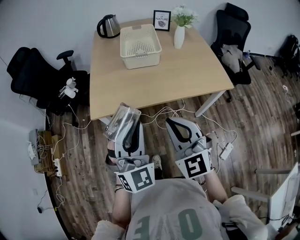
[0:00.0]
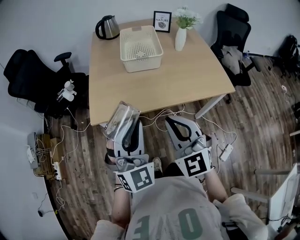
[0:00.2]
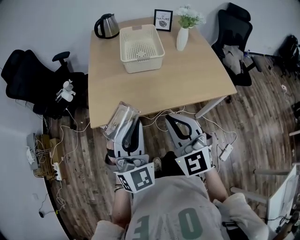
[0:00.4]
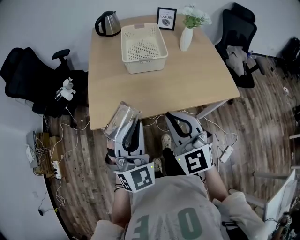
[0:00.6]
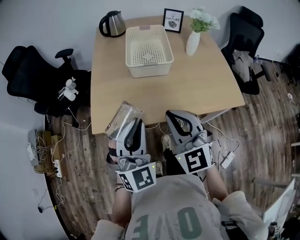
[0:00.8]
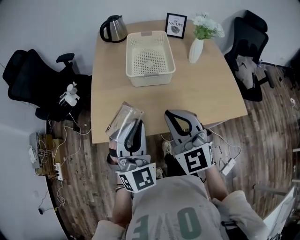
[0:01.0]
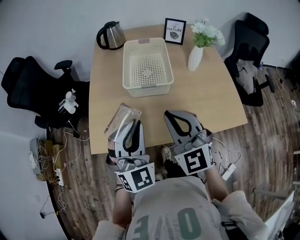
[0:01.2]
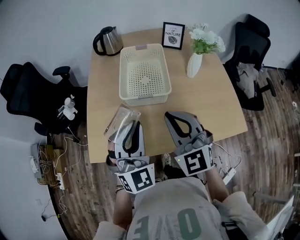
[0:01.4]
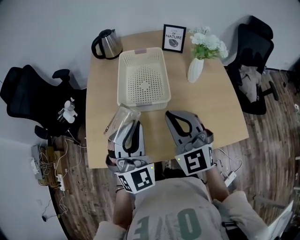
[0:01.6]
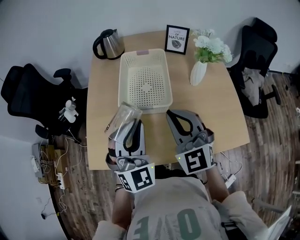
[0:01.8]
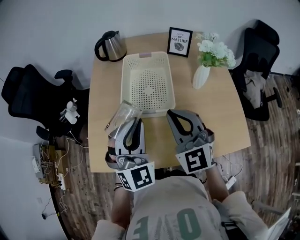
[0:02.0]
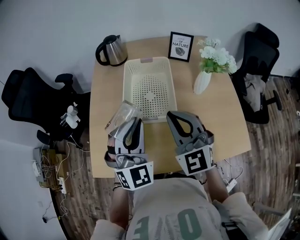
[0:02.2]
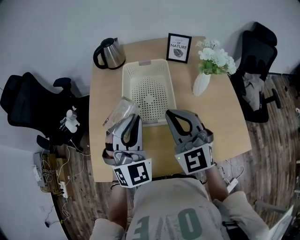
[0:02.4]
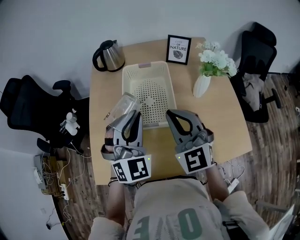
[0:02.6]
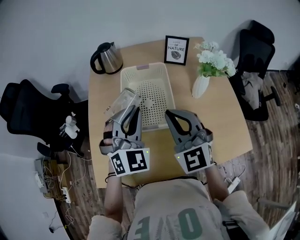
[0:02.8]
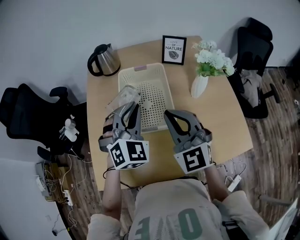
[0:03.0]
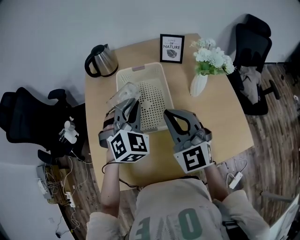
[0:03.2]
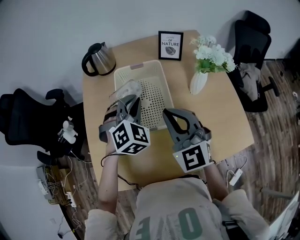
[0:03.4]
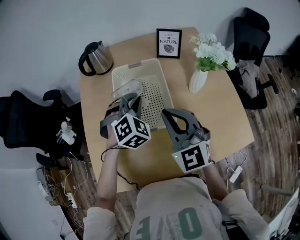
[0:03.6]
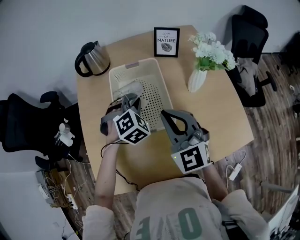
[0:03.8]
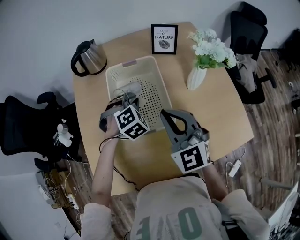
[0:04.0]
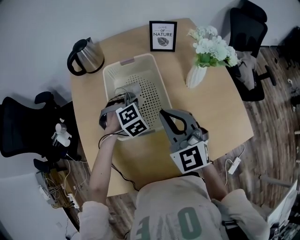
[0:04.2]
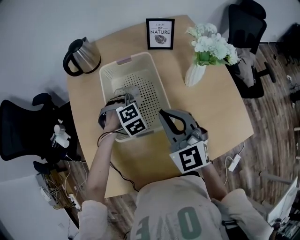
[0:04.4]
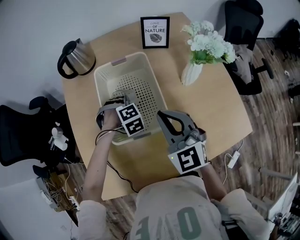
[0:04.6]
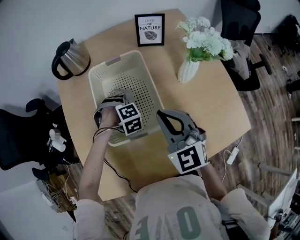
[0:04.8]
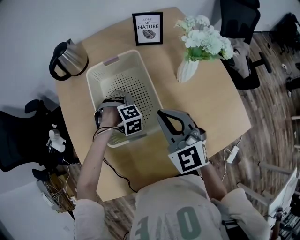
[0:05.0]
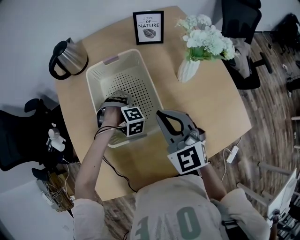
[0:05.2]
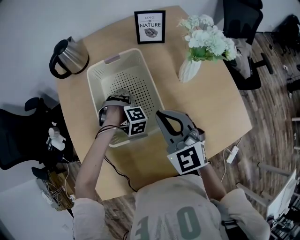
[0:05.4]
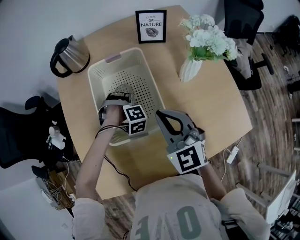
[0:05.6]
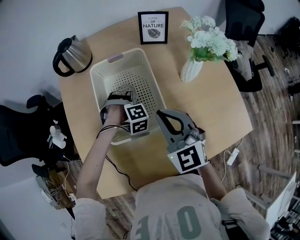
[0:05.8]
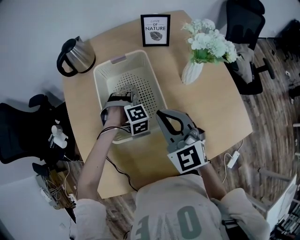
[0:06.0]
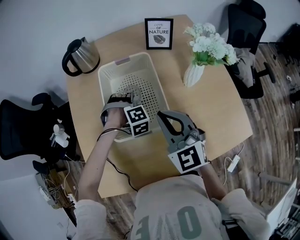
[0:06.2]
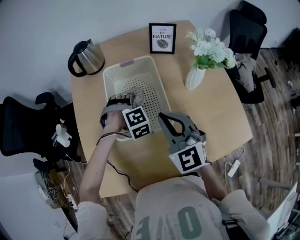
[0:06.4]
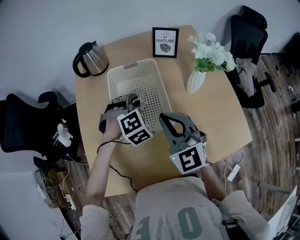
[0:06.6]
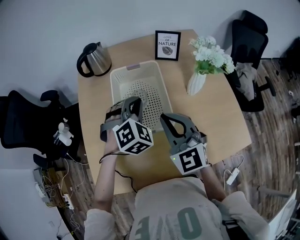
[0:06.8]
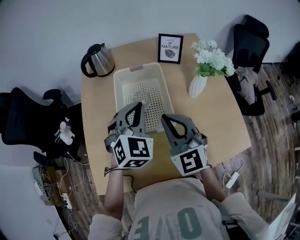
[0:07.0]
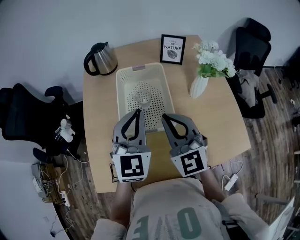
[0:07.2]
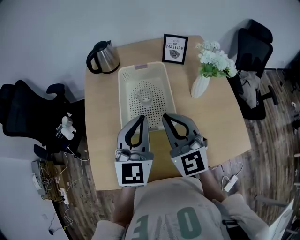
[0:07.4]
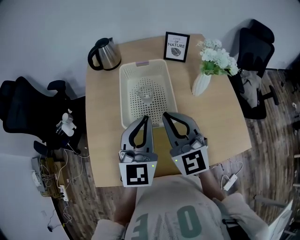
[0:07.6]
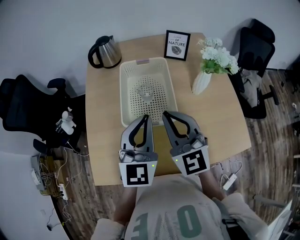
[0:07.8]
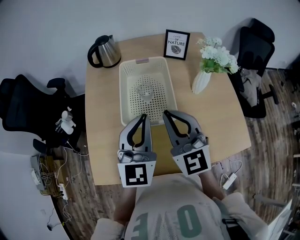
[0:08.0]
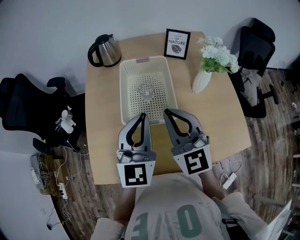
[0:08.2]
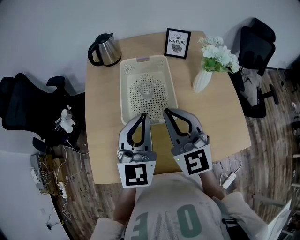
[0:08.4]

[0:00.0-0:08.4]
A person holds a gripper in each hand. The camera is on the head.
0:00.0 to 0:01.4: Both grippers move forward, some 30 cm.
0:01.4 to 0:02.8: Both grippers travel together forward, approximately 15 cm.
0:02.8 to 0:04.2: The right gripper goes some 10 cm downward and forward. The left gripper is displaced downward and forward by some 25 cm, and tips its fingers downward by approximately 40 degrees.
0:04.2 to 0:05.6: The left gripper is displaced downward by approximately 10 cm, and turns by approximately 30 degrees.
0:05.6 to 0:07.0: The right gripper heads upward, covering some 5 cm; the left gripper heads upward, covering approximately 25 cm, angles its fingers upward, by some 50 degrees, and closes its fingers.
0:07.0 to 0:08.4: The left gripper travels backward by approximately 10 cm, and rotates roughly 40 degrees.

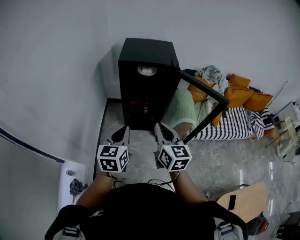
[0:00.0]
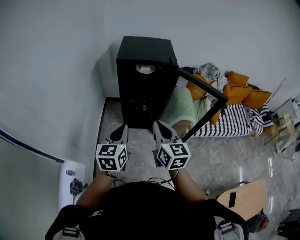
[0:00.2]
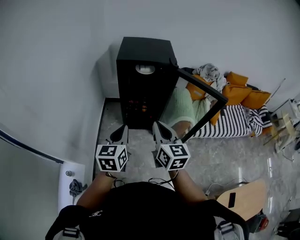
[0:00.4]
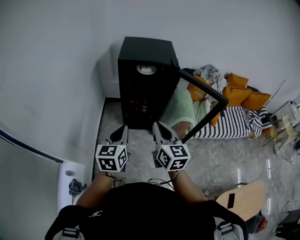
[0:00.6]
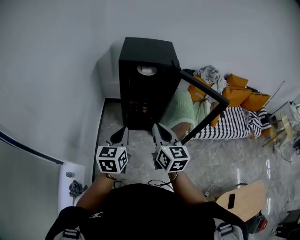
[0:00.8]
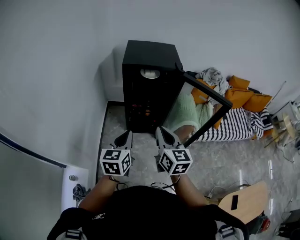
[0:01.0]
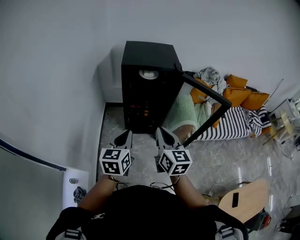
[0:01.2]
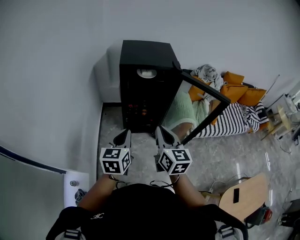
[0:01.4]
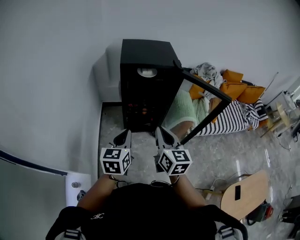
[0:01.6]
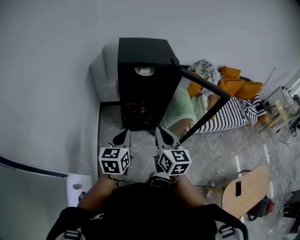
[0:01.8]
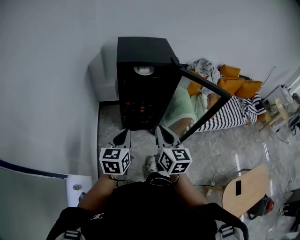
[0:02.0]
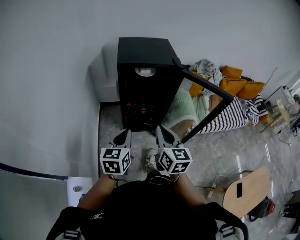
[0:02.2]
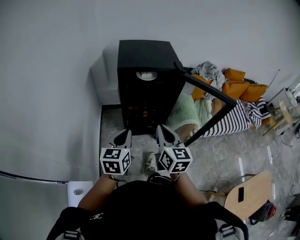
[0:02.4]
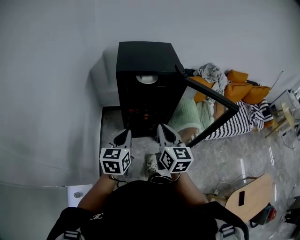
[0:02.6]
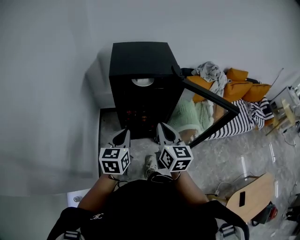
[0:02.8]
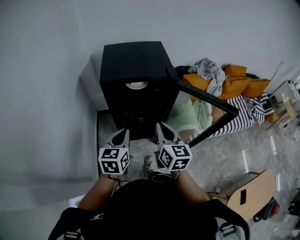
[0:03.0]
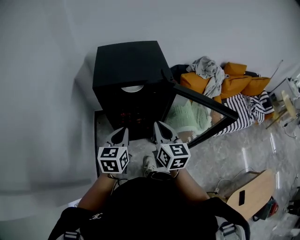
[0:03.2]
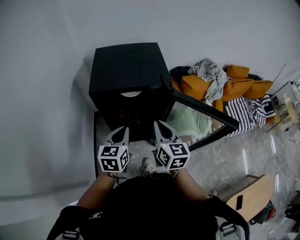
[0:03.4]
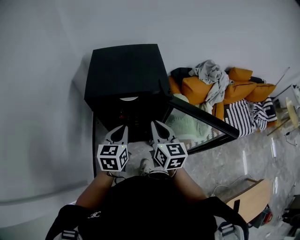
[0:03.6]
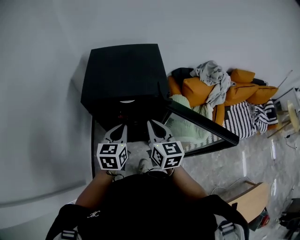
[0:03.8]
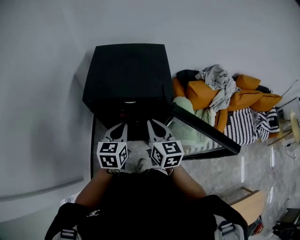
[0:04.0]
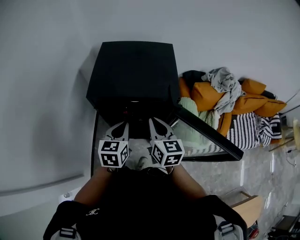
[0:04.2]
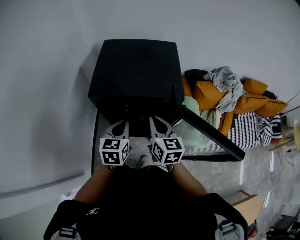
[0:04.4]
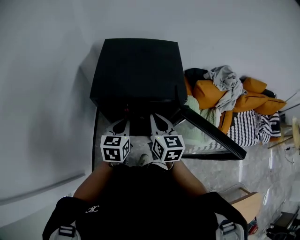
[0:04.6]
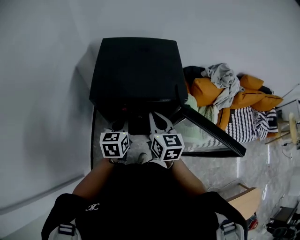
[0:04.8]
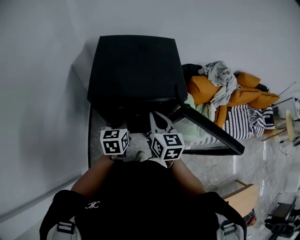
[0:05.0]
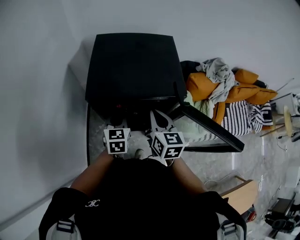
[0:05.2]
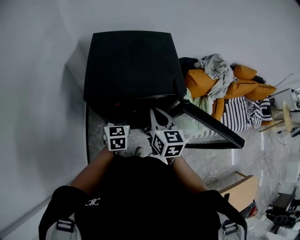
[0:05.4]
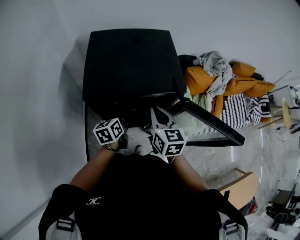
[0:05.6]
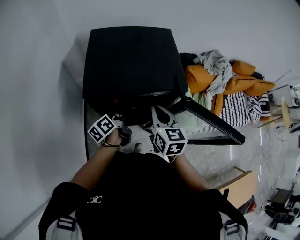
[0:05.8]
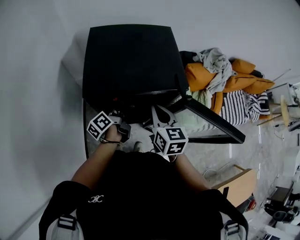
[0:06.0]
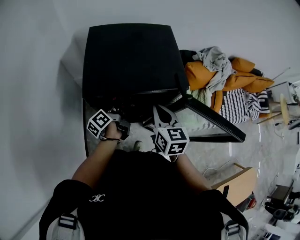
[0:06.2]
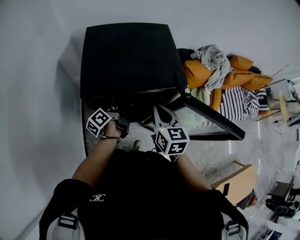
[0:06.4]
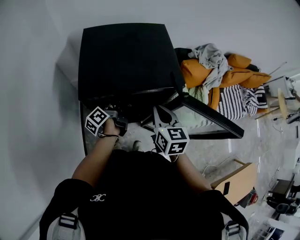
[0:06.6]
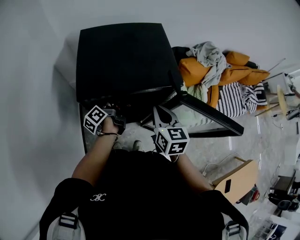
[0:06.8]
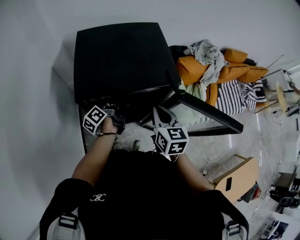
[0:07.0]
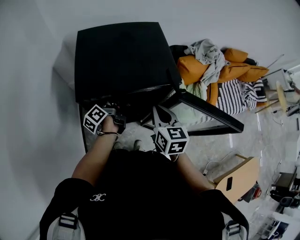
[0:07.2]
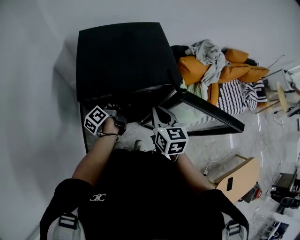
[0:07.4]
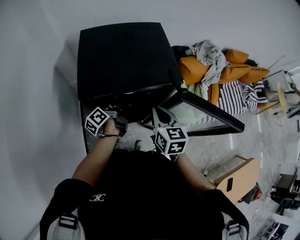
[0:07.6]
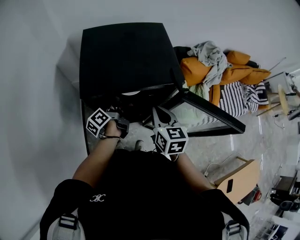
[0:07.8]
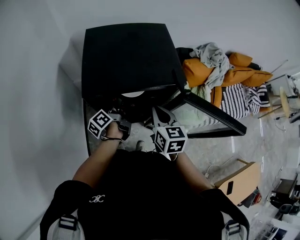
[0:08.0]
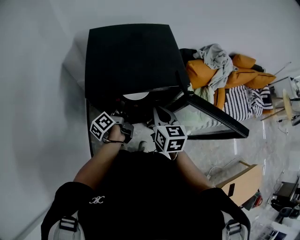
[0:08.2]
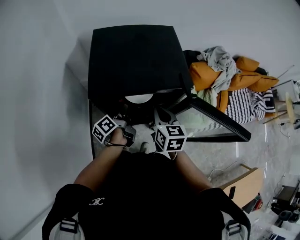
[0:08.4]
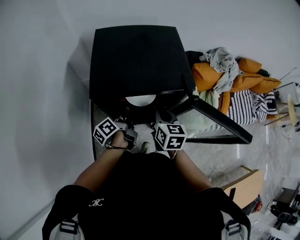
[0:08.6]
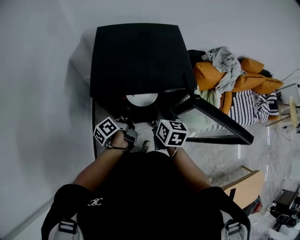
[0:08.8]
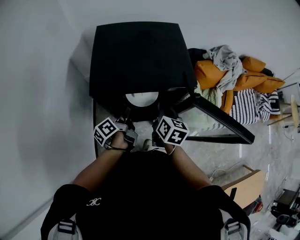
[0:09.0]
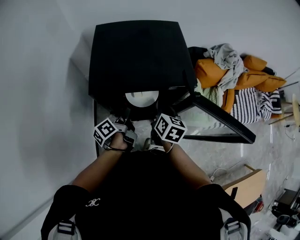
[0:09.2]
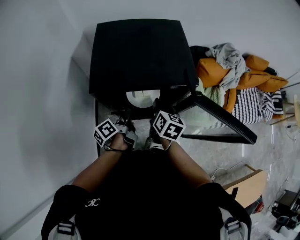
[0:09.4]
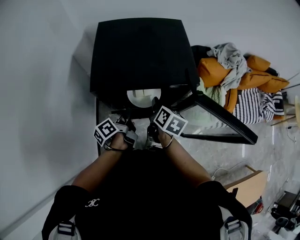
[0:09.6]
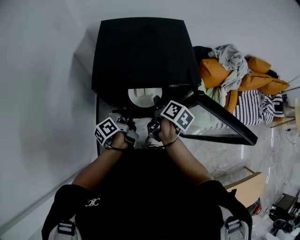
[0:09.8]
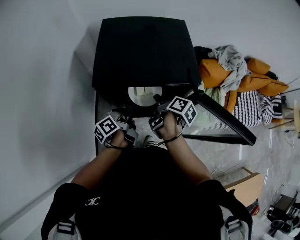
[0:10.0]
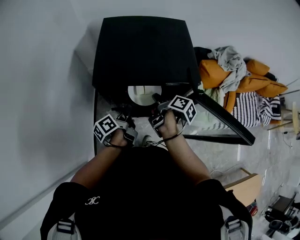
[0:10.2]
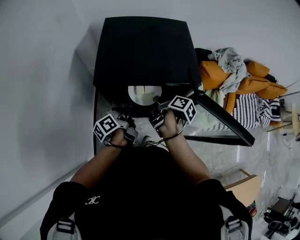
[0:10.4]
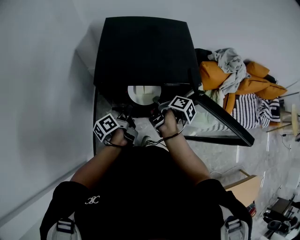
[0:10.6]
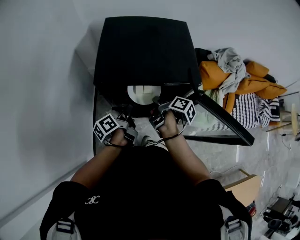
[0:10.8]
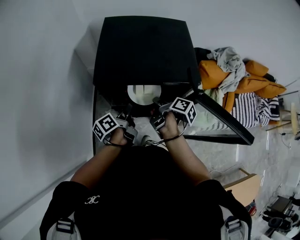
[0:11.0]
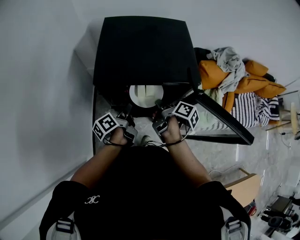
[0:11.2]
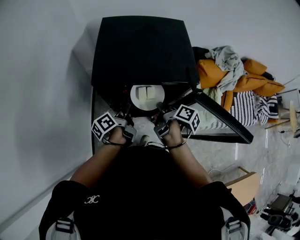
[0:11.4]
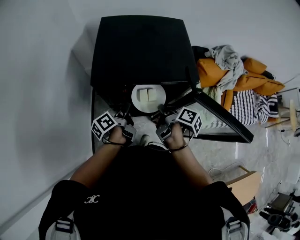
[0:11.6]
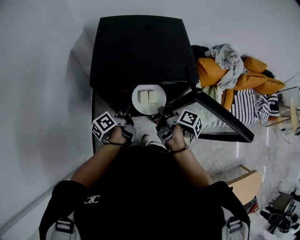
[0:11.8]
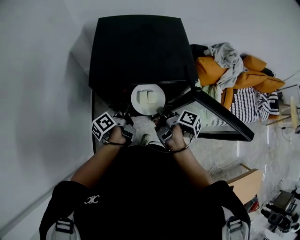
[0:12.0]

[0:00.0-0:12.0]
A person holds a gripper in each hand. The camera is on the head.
0:00.0 to 0:01.6: Both grippers move to the left, roughly 5 cm.
0:01.6 to 0:03.0: The grippers both shift forward by about 15 cm.
0:03.0 to 0:04.4: The two grippers go roughly 20 cm forward.
0:04.4 to 0:06.0: The left gripper travels downward and forward by roughly 15 cm, rotates around the line of its fingers by some 60 degrees, counterclockwise from behind, and opens up.
0:06.0 to 0:07.6: The grippers move only a little.
0:07.6 to 0:09.0: The right gripper heads downward, covering approximately 5 cm; the left gripper shifts roughly 5 cm backward.
0:09.0 to 0:10.4: The right gripper heads downward, covering some 5 cm, and twists roughly 50 degrees clockwise, seen from behind.
0:10.4 to 0:12.0: The right gripper shifts approximately 5 cm backward.

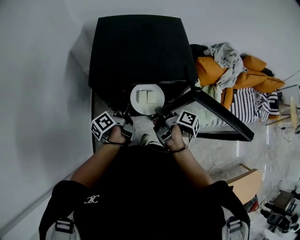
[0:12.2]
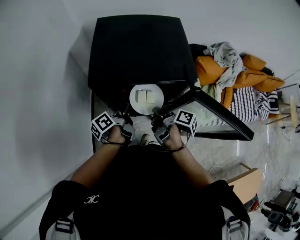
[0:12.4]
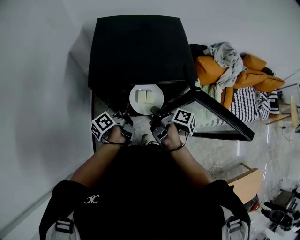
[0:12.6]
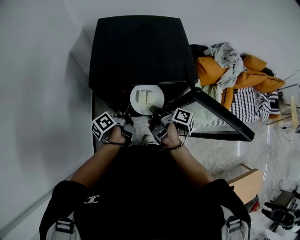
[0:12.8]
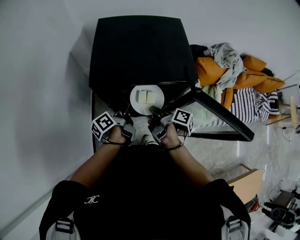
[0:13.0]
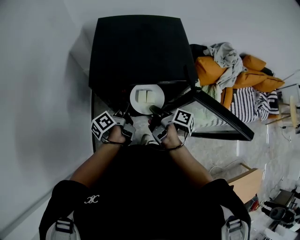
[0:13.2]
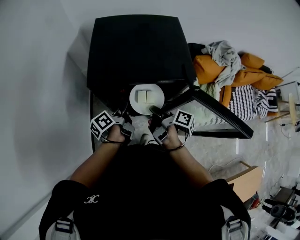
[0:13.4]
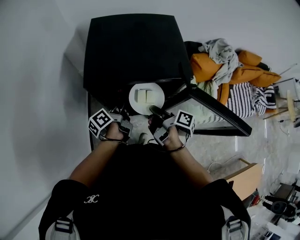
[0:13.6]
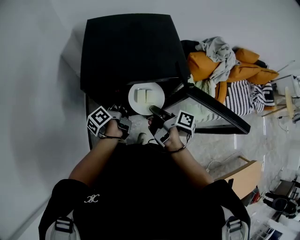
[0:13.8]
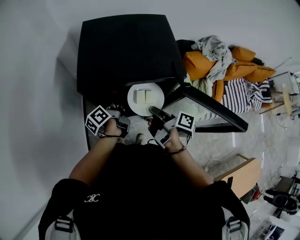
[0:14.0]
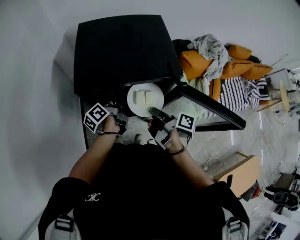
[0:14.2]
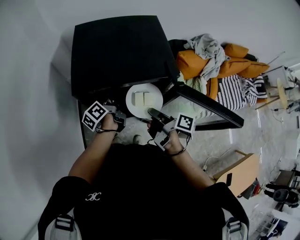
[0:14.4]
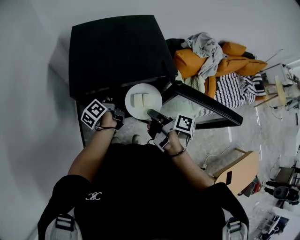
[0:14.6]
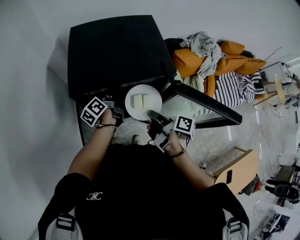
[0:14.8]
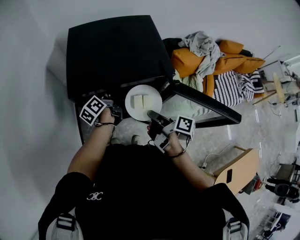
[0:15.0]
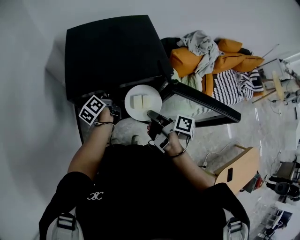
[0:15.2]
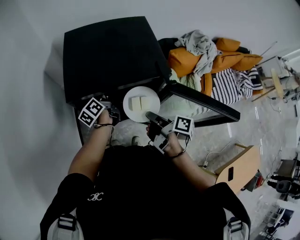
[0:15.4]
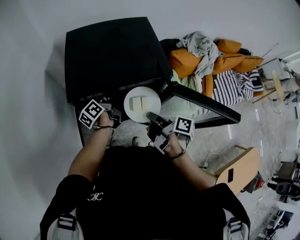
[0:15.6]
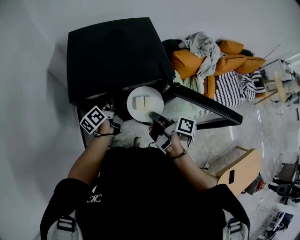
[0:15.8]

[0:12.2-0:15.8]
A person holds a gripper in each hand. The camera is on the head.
0:12.2 to 0:14.0: The grippers make only small movements.
